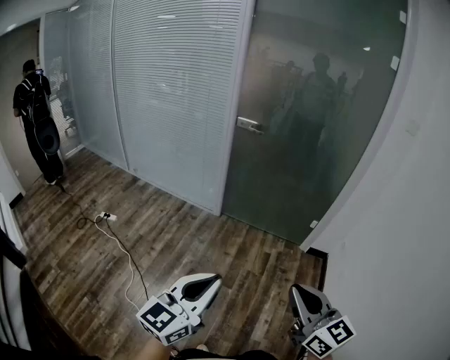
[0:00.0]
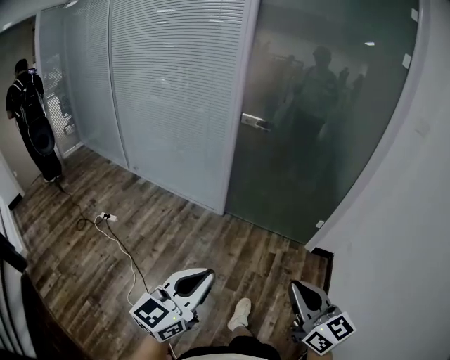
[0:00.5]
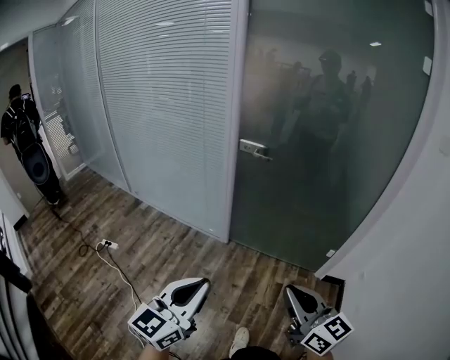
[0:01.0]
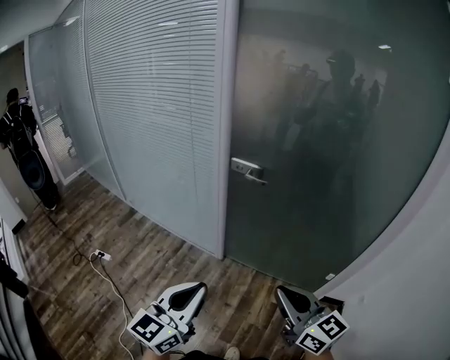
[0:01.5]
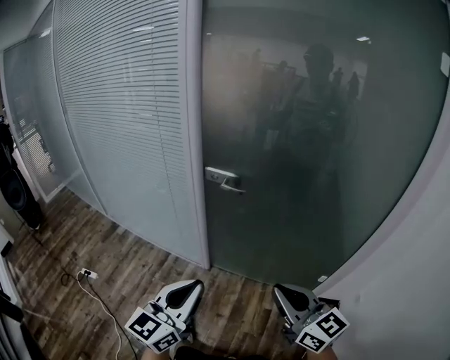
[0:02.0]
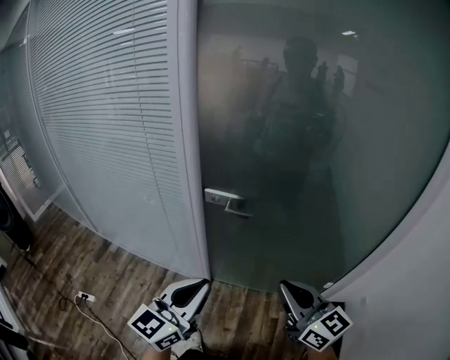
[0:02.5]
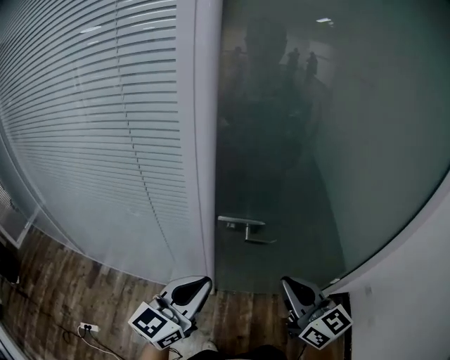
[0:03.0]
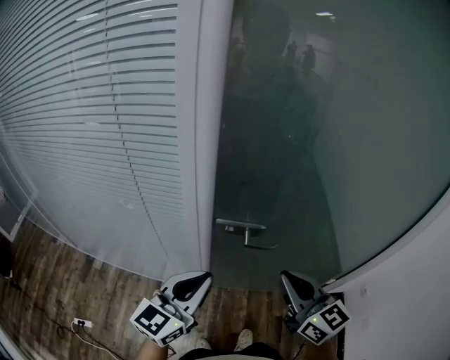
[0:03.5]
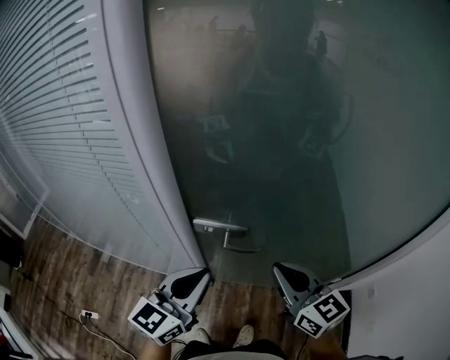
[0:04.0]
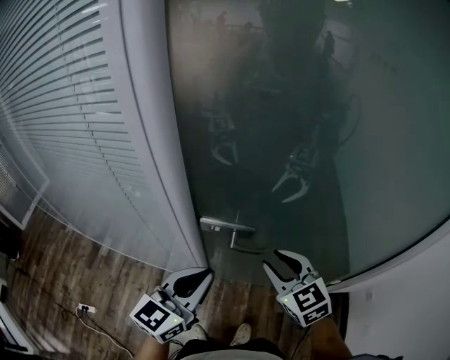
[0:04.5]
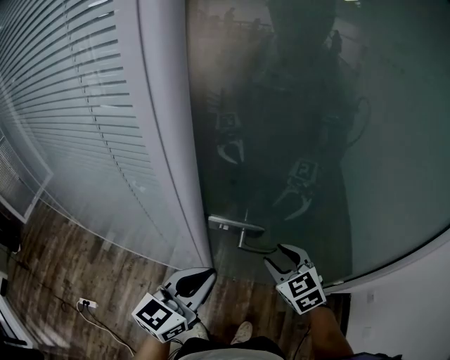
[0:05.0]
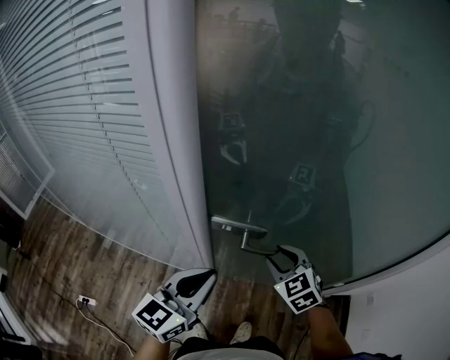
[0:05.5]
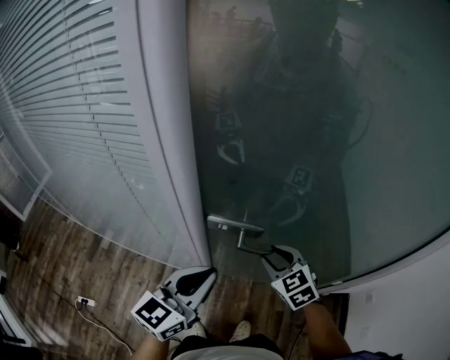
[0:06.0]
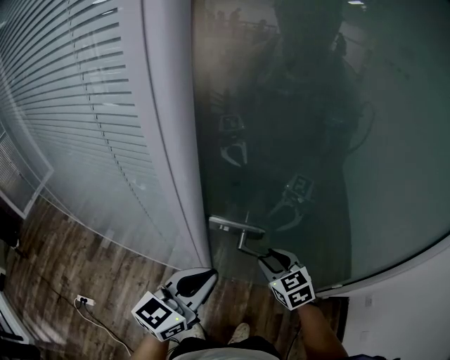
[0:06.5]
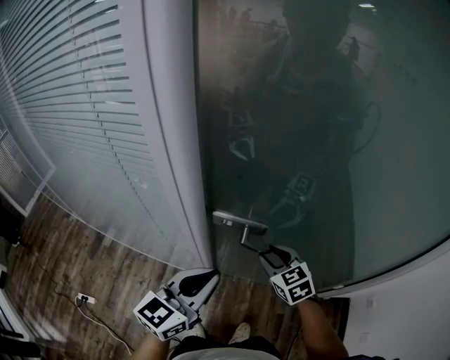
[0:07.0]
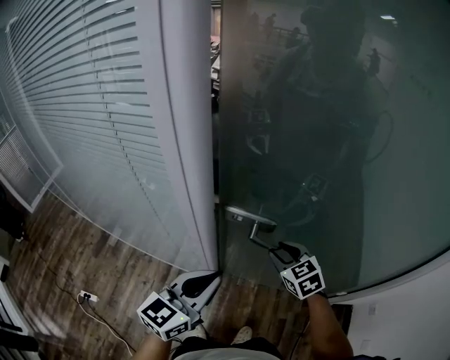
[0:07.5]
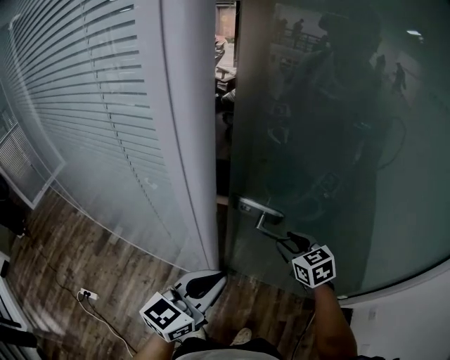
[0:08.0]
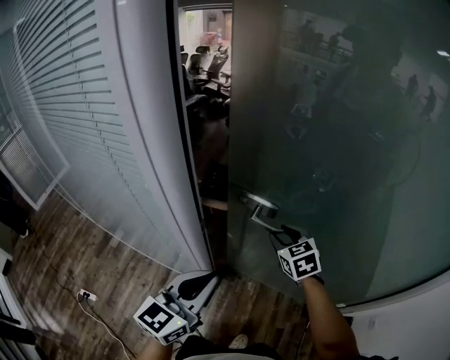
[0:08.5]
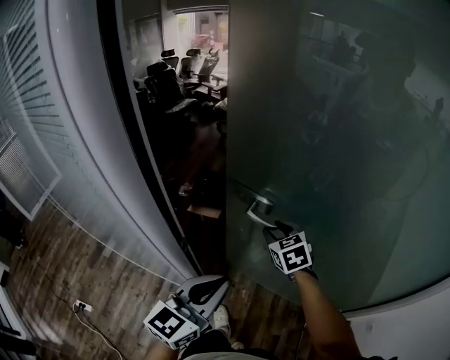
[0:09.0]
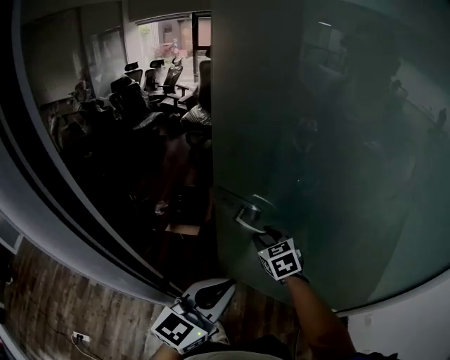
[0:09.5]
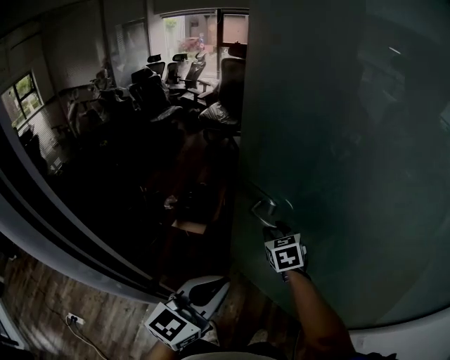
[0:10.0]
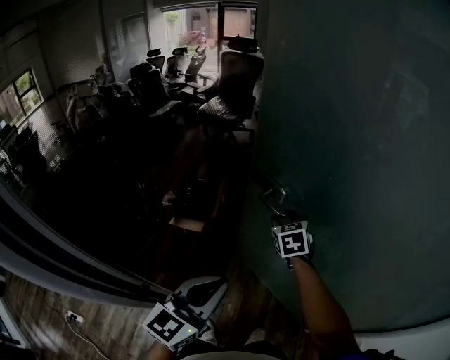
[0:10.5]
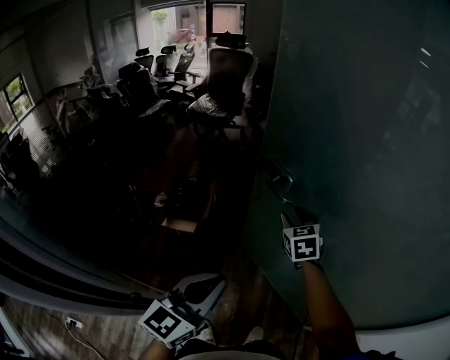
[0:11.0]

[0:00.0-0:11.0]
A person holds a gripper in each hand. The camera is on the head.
0:00.0 to 0:02.0: The pair of grippers is taken forward, some 50 cm.
0:02.0 to 0:03.5: The grippers both shift forward and to the left by roughly 30 cm.
0:03.5 to 0:05.5: The right gripper is displaced downward and forward by roughly 20 cm, points its fingers approximately 30 degrees further downward, and opens its fingers. Meanwhile the left gripper changes place by about 5 cm.
0:05.5 to 0:07.5: There are only small adjustments of the grippers.
0:07.5 to 0:09.0: The left gripper goes about 10 cm forward and to the right, while the right gripper goes some 15 cm forward.
0:09.0 to 0:11.0: The right gripper travels forward and to the right by approximately 25 cm; the left gripper moves forward, about 15 cm.

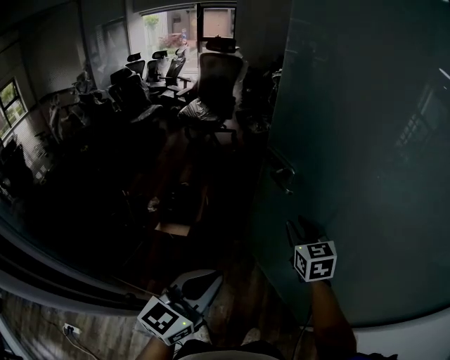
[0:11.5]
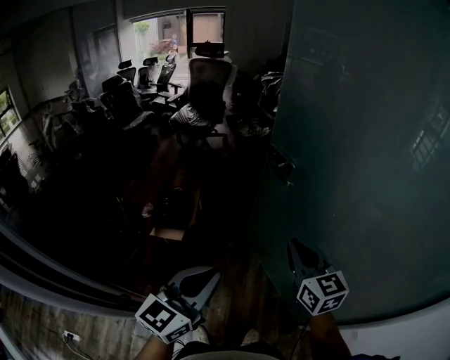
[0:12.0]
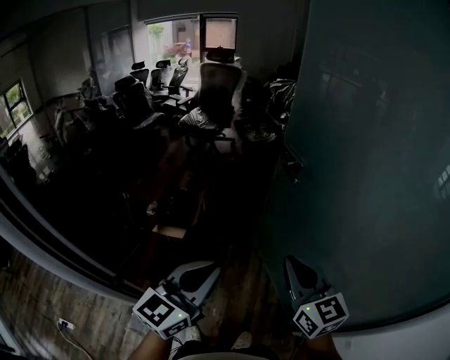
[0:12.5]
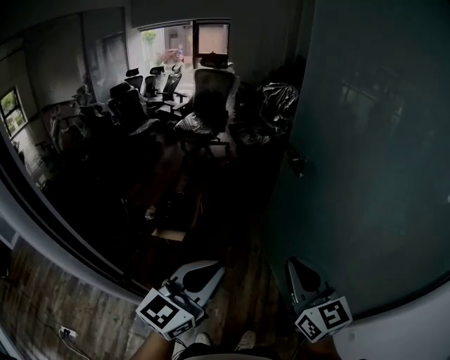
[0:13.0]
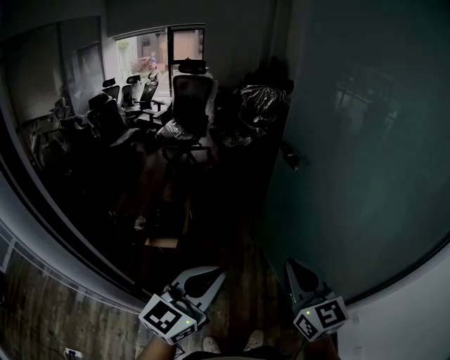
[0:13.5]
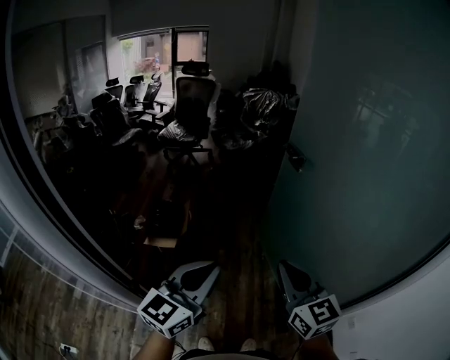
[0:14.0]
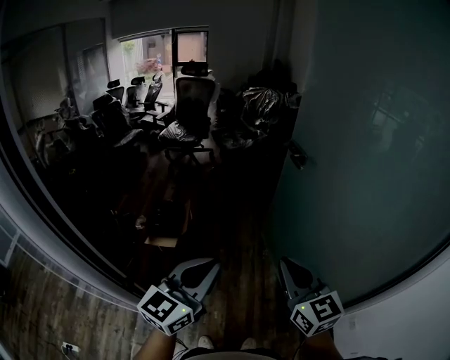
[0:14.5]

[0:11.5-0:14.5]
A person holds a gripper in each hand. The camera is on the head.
0:11.5 to 0:13.0: The right gripper goes about 25 cm backward and upward, changes its angle by some 20 degrees, and closes its fingers. Meanwhile the left gripper moves upward, approximately 5 cm.
0:13.0 to 0:14.5: The grippers stay close to where they were, moving slightly.

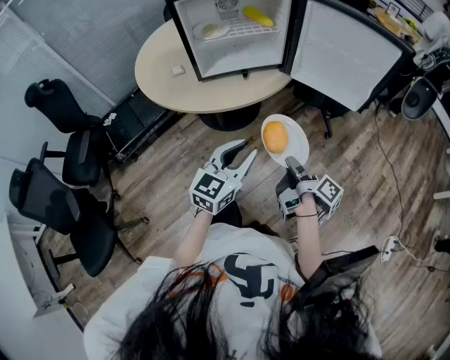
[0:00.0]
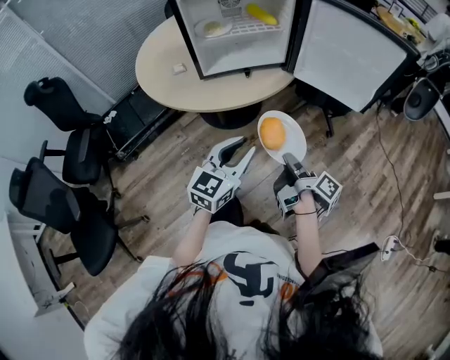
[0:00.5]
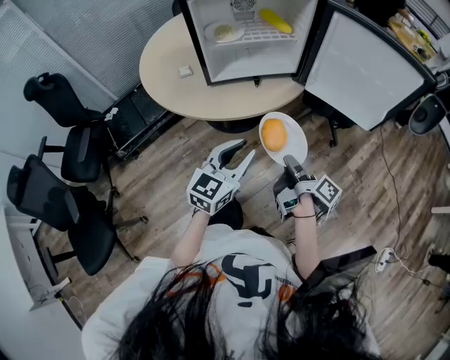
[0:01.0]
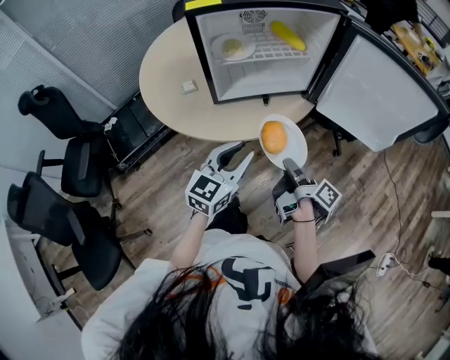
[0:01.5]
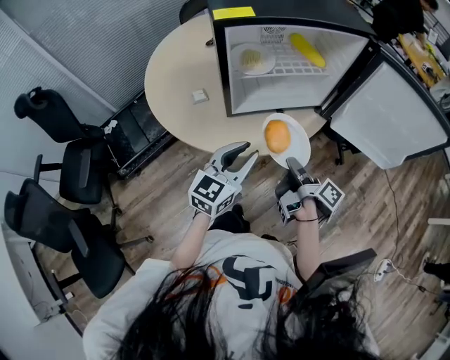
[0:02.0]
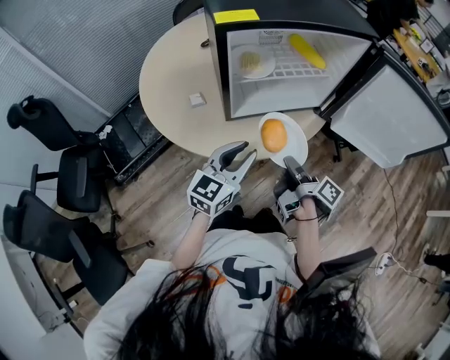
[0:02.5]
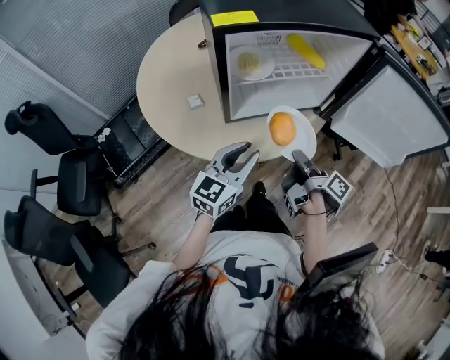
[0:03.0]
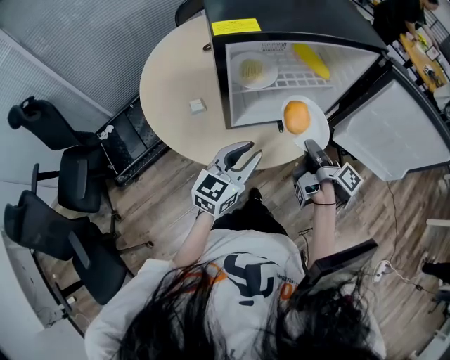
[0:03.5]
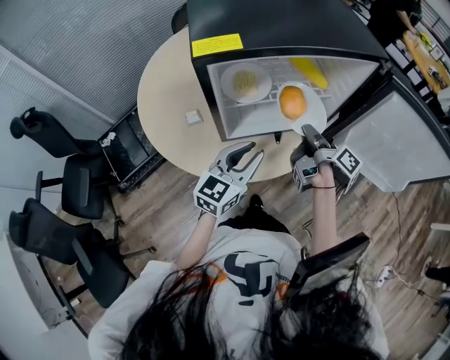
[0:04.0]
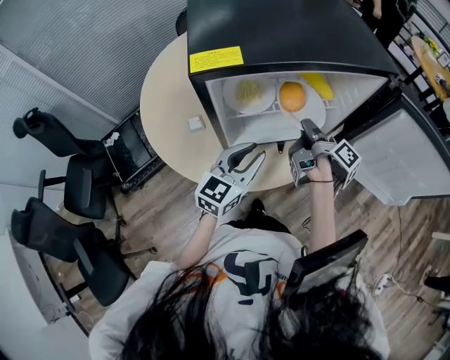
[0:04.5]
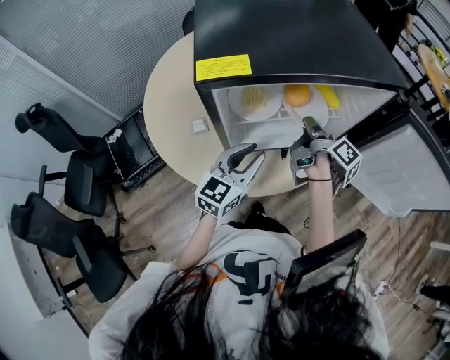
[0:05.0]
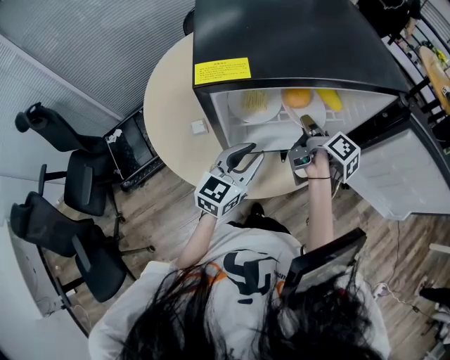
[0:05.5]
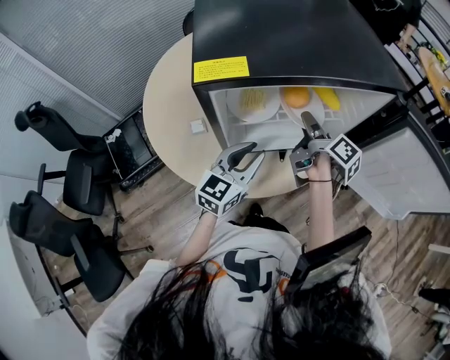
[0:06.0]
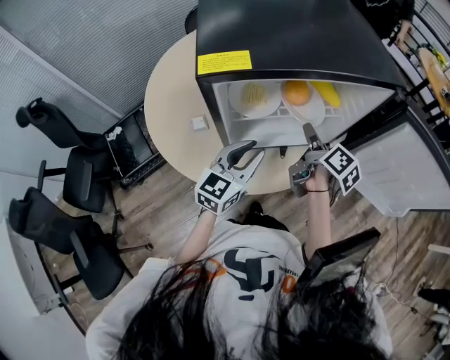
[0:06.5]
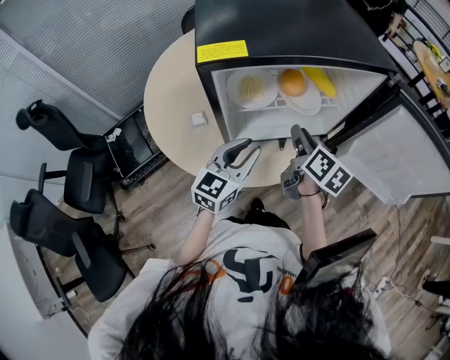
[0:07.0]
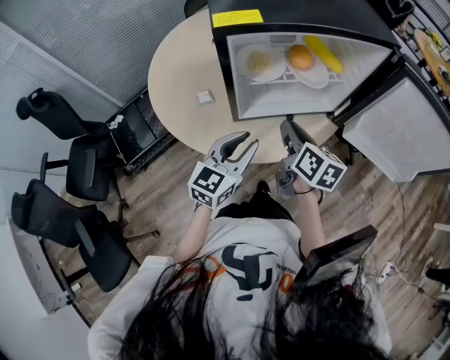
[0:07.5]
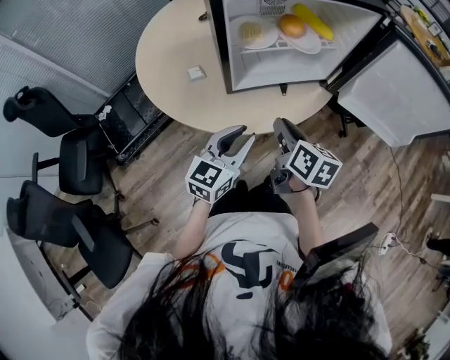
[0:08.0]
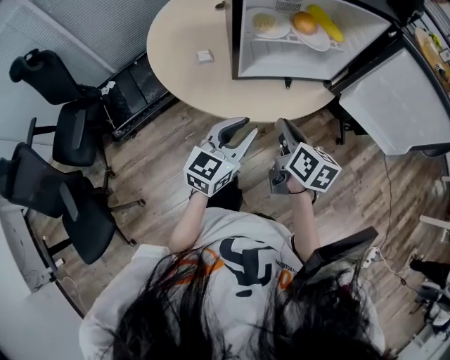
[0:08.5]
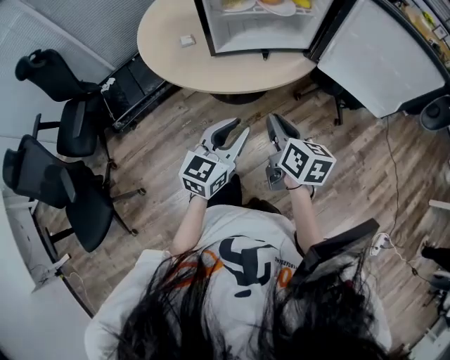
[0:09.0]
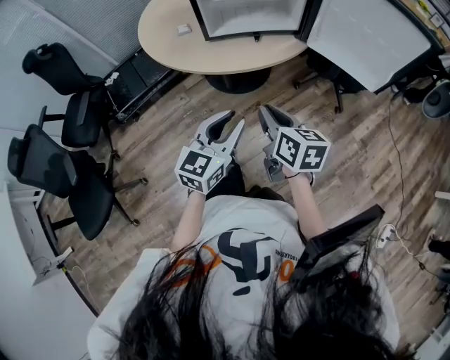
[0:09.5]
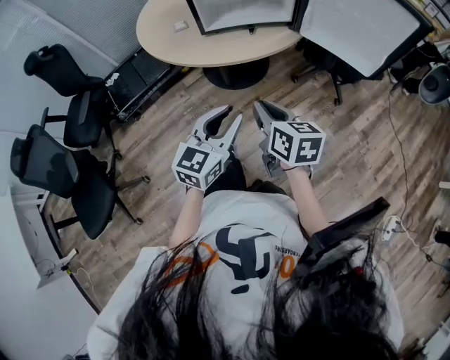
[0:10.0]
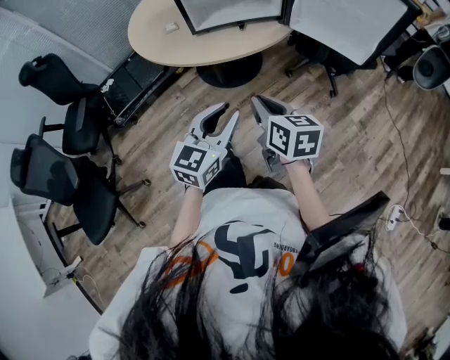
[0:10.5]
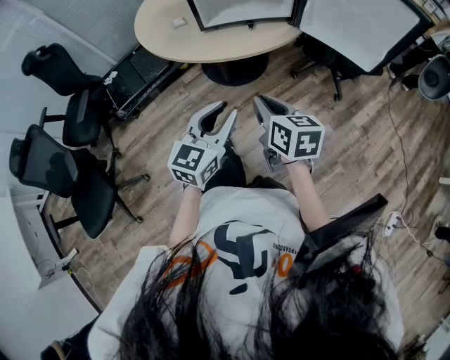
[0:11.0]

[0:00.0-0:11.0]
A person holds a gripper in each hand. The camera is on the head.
0:00.0 to 0:02.0: The left gripper changes place by roughly 25 cm.
0:02.0 to 0:03.5: The left gripper changes place by some 5 cm.
0:03.5 to 0:05.5: The left gripper shifts by roughly 10 cm.
0:05.5 to 0:07.5: The left gripper changes place by about 10 cm.
0:07.5 to 0:09.0: The left gripper ends up some 20 cm from where it was.
0:09.0 to 0:11.0: The left gripper changes place by roughly 10 cm.

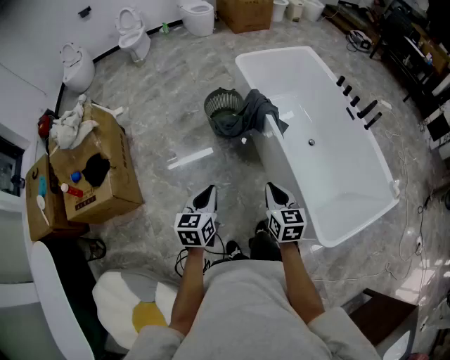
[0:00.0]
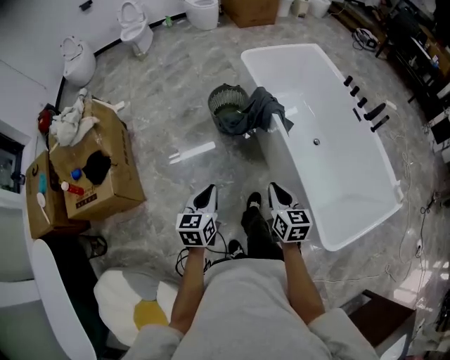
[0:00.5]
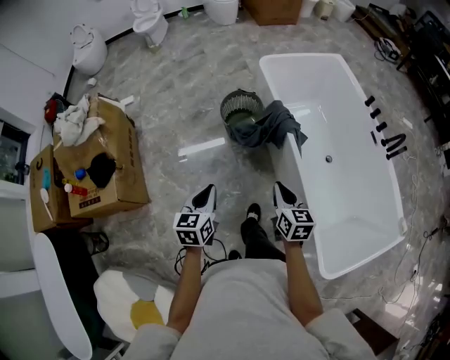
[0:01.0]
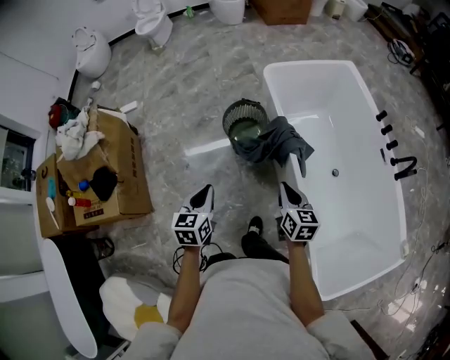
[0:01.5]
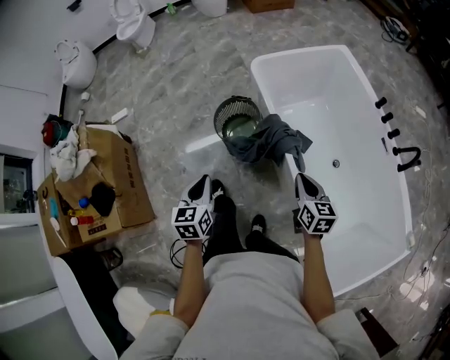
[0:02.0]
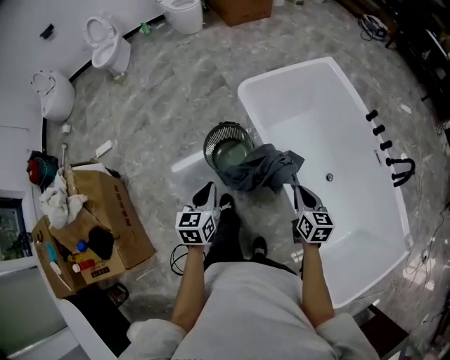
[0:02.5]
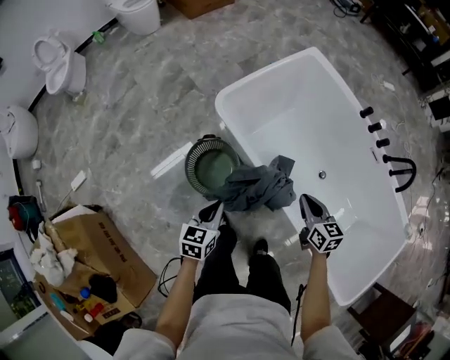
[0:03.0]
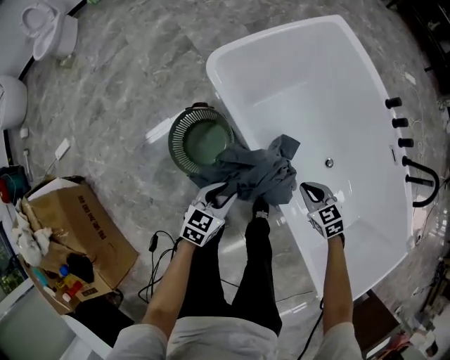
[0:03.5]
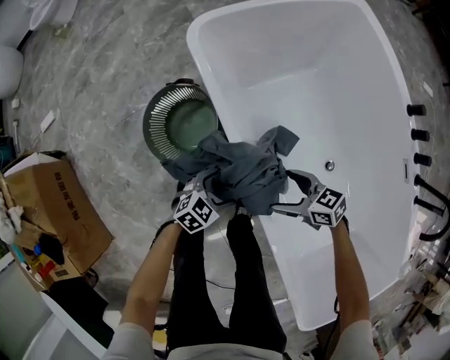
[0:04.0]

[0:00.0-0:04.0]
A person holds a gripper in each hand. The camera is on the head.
0:00.0 to 0:02.0: The grippers both shift forward by some 35 cm.
0:02.0 to 0:04.0: The grippers both shift downward by roughly 40 cm. The right gripper rotates roughly 50 degrees, and opens, while the left gripper changes its angle by about 60 degrees, and opens its fingers.
